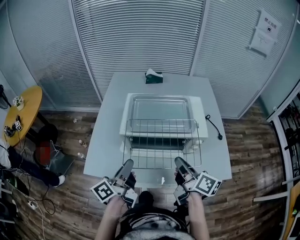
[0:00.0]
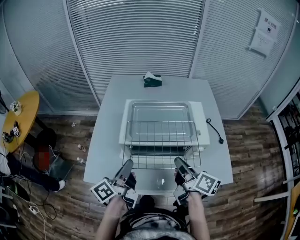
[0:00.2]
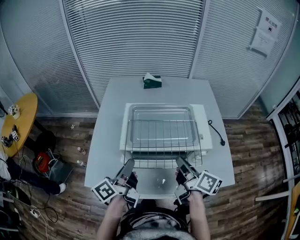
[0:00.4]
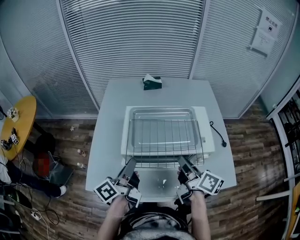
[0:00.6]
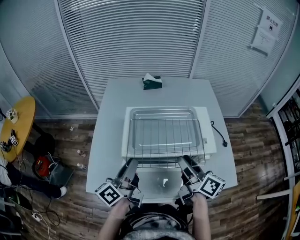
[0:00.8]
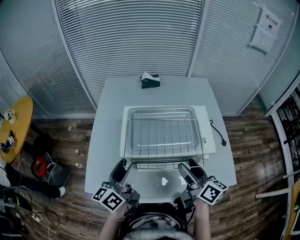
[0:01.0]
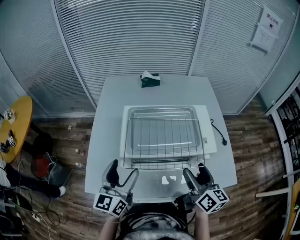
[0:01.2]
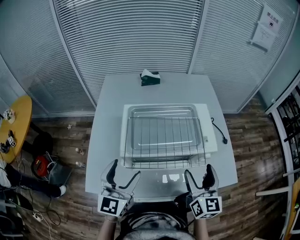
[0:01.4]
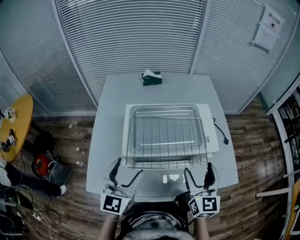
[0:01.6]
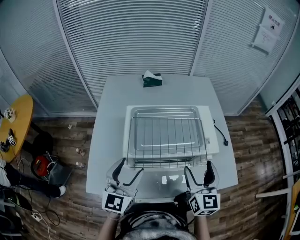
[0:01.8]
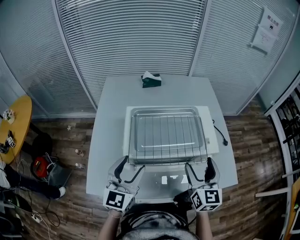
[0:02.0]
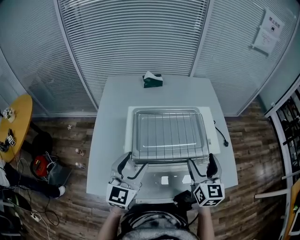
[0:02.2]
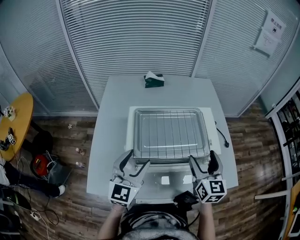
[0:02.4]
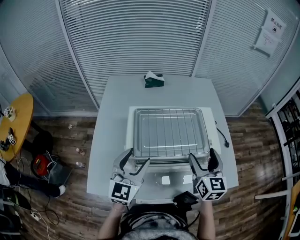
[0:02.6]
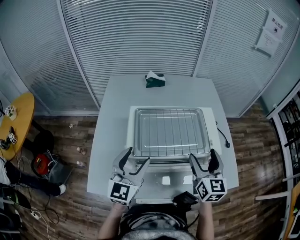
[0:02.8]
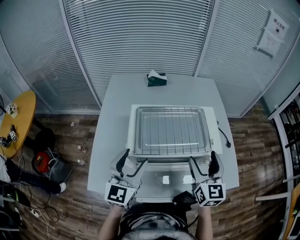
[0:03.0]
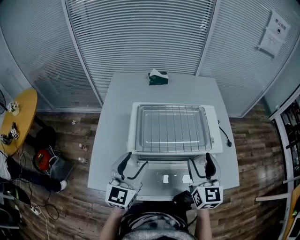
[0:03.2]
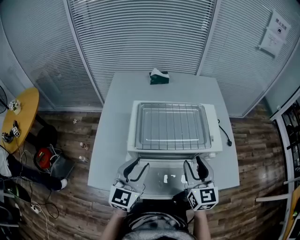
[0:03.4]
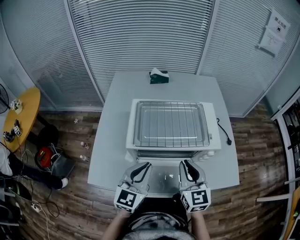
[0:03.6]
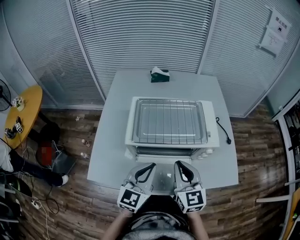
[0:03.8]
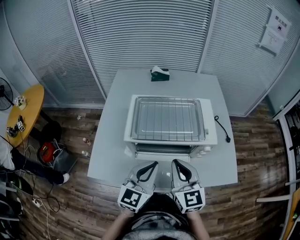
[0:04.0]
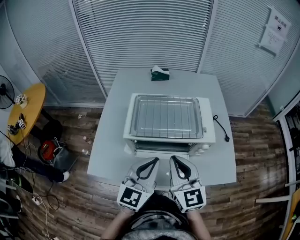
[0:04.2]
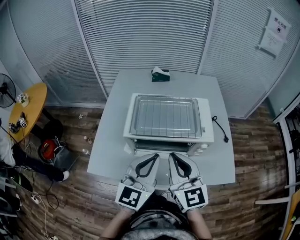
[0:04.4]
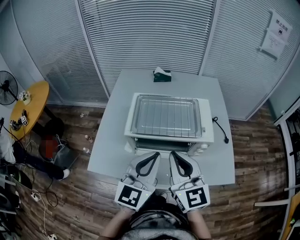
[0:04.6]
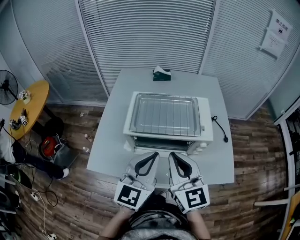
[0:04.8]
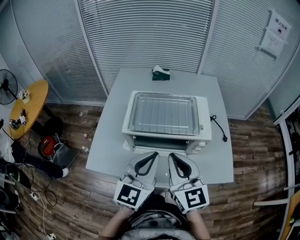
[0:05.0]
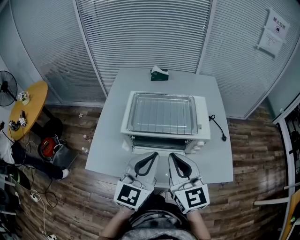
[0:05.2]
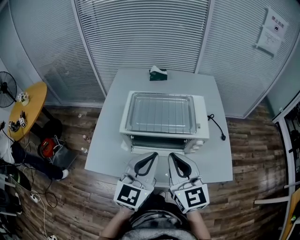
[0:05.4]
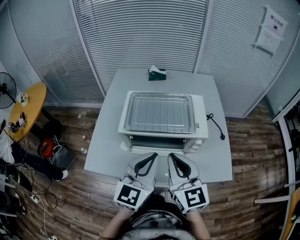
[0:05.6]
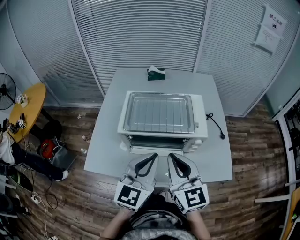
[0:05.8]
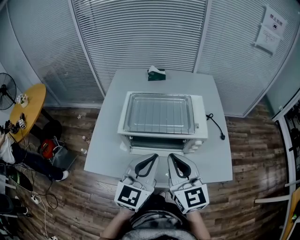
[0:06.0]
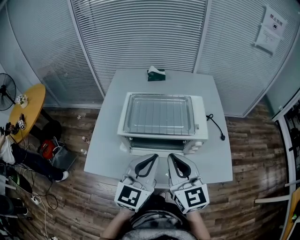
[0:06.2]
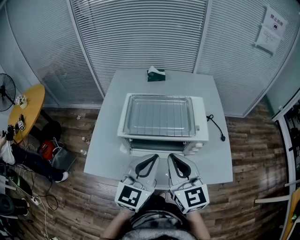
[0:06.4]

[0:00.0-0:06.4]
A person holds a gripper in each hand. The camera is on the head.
0:00.0 to 0:01.6: The left gripper goes some 10 cm forward, rolls clockwise, seen from behind, by roughly 70 degrees, and opens; the right gripper ends up roughly 5 cm from where it was, rotates around the line of its fingers by some 50 degrees, counterclockwise from behind, and opens its fingers.
0:03.2 to 0:04.8: The left gripper heads to the right, upward and backward, covering roughly 15 cm, and closes up, while the right gripper is displaced backward, upward and to the left by some 15 cm, swivels some 20 degrees, and closes.
0:04.8 to 0:06.4: There are only small adjustments of the grippers.

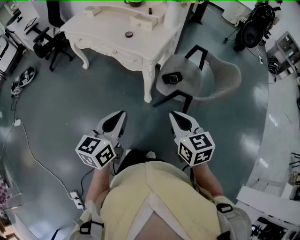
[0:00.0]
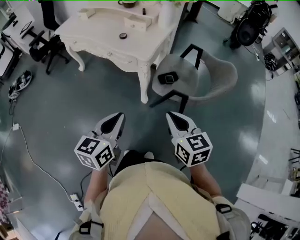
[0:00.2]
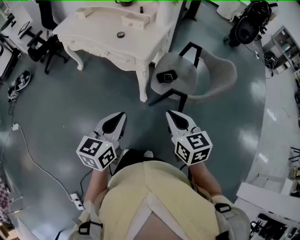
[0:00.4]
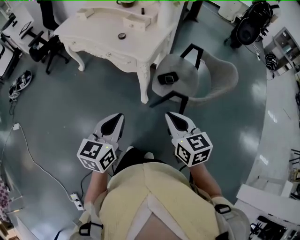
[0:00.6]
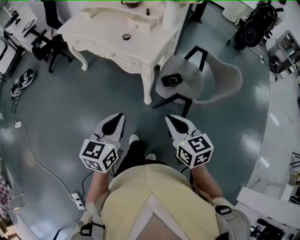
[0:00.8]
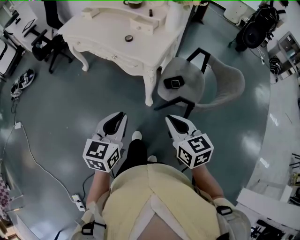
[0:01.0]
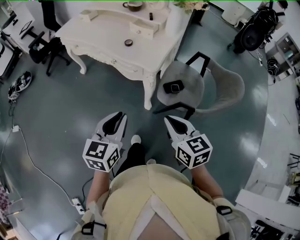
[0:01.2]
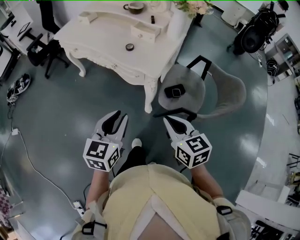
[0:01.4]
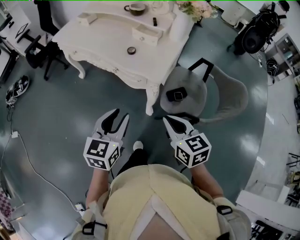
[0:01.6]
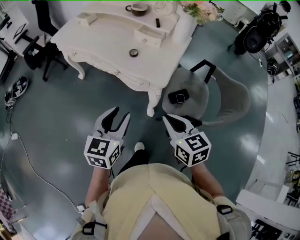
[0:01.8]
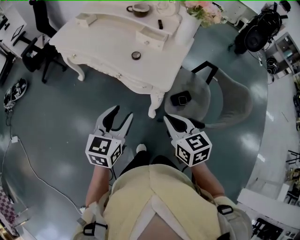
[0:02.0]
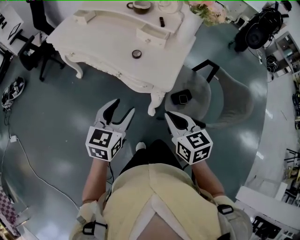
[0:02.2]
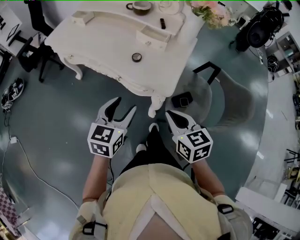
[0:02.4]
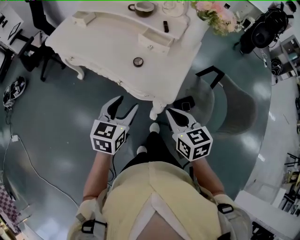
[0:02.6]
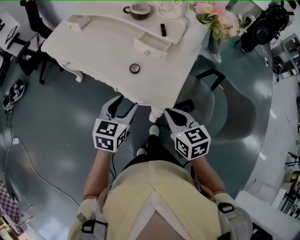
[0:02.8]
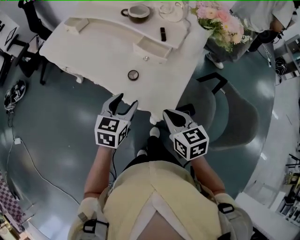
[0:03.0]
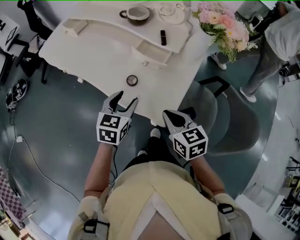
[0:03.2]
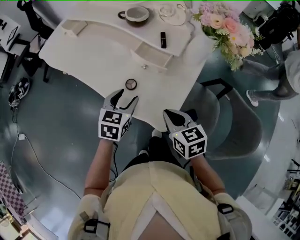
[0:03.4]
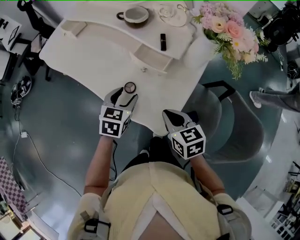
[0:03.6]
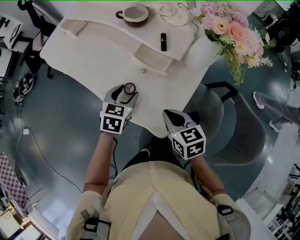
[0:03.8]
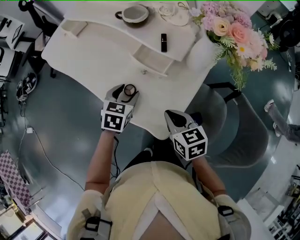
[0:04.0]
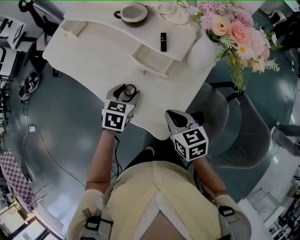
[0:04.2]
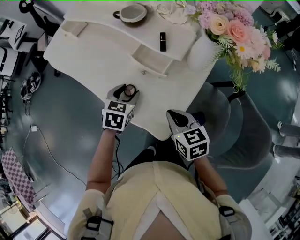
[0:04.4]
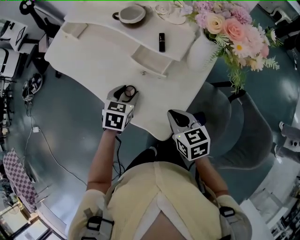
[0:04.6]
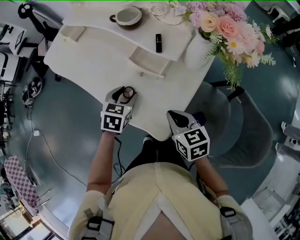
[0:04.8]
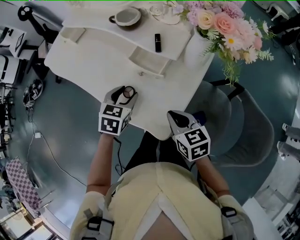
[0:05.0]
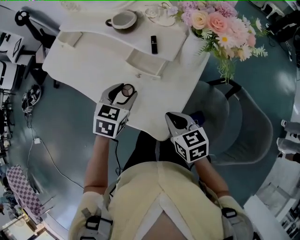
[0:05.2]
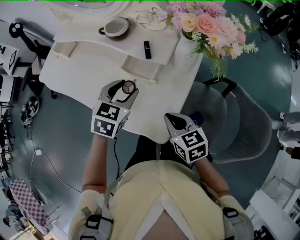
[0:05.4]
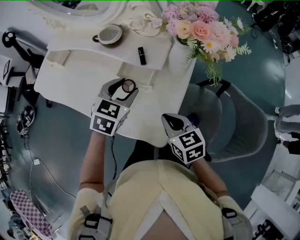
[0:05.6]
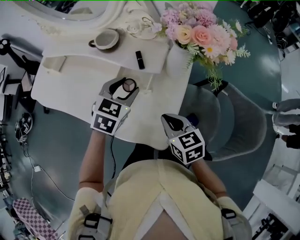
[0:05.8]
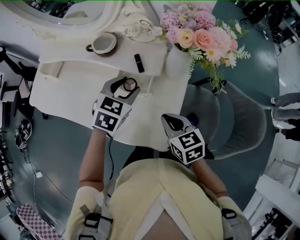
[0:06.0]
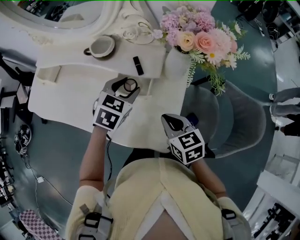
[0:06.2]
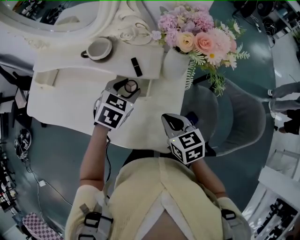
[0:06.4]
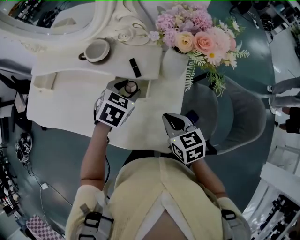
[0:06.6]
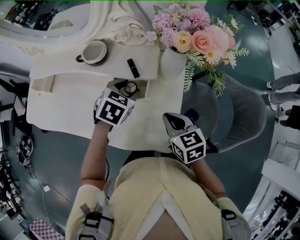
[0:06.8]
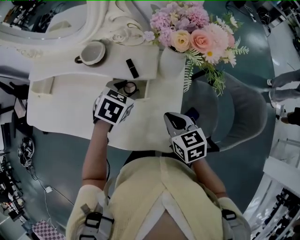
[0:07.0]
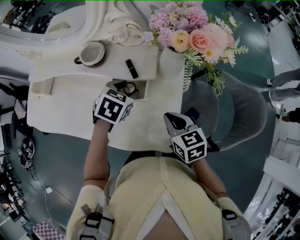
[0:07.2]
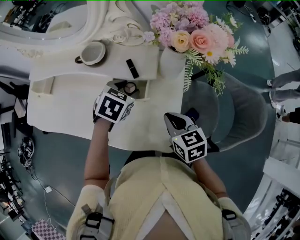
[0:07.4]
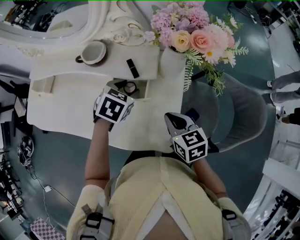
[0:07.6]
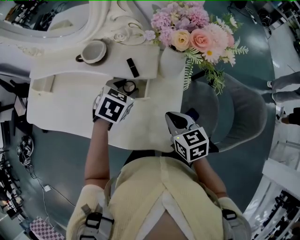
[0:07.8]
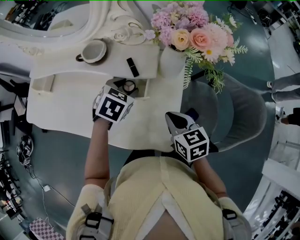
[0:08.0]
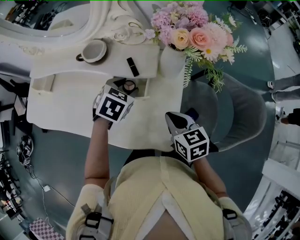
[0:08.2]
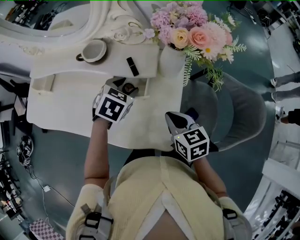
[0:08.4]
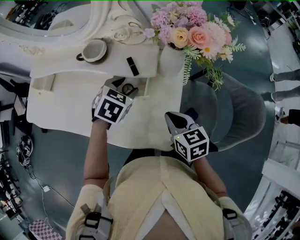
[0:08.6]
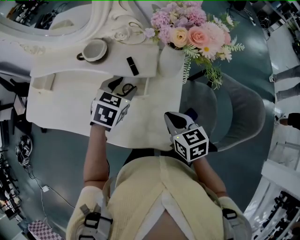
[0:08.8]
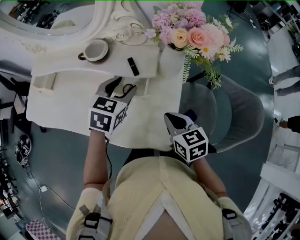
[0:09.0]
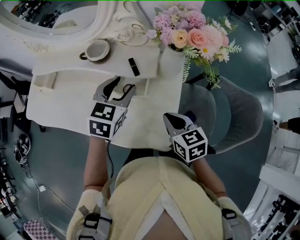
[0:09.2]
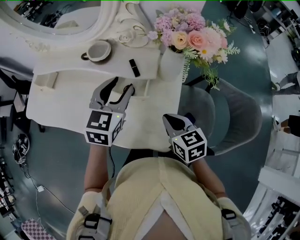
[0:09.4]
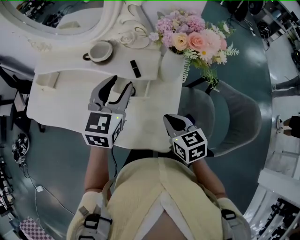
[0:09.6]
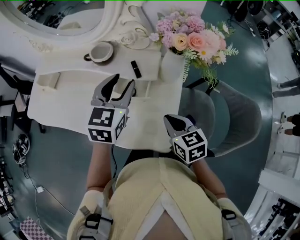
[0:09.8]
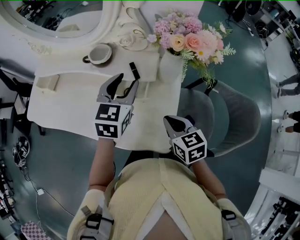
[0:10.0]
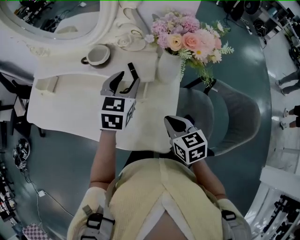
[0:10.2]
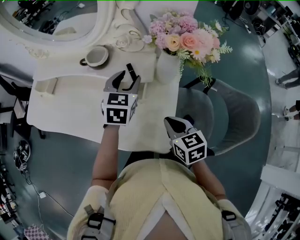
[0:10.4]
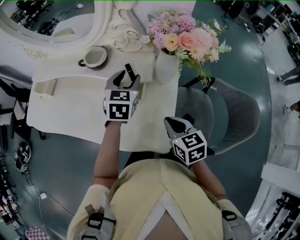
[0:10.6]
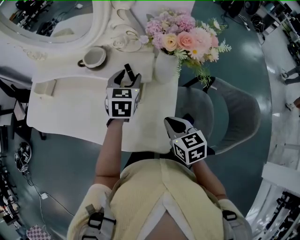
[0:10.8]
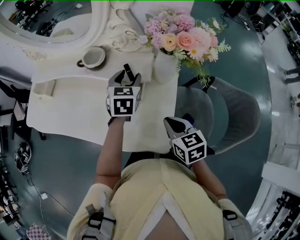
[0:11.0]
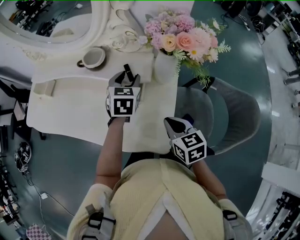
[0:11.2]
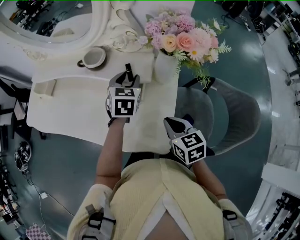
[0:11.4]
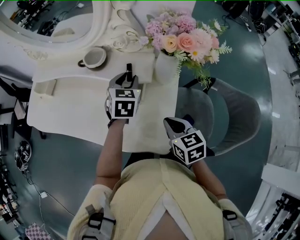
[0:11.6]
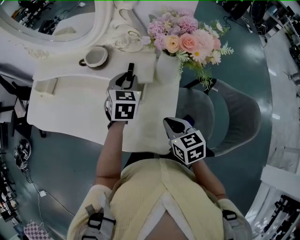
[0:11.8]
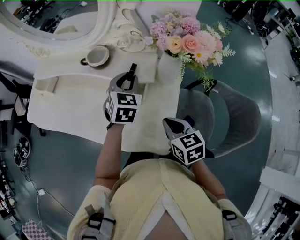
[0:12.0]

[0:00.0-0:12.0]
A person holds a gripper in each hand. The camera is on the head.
0:00.0 to 0:01.6: The left gripper goes some 15 cm forward, and opens up; the right gripper moves forward and to the left, about 15 cm.
0:01.6 to 0:03.0: The grippers both shift forward by some 25 cm. The left gripper opens up.
0:03.0 to 0:04.4: The right gripper goes about 10 cm forward, downward and to the right. Meanwhile the left gripper travels forward and downward by roughly 15 cm, and rotates approximately 20 degrees.
0:04.4 to 0:06.0: The left gripper is displaced upward, to the right and forward by about 15 cm, and rotates some 30 degrees.
0:06.0 to 0:07.6: The left gripper shifts by roughly 5 cm.
0:07.6 to 0:09.0: The left gripper is displaced upward by about 5 cm.
0:09.0 to 0:10.4: The left gripper reaches some 10 cm upward, then returns.
0:10.4 to 0:12.0: The left gripper closes its fingers.

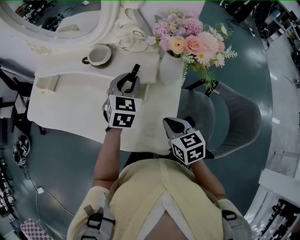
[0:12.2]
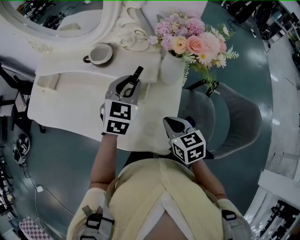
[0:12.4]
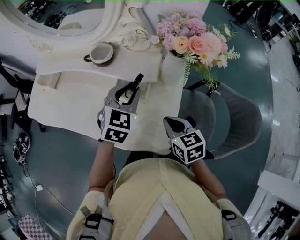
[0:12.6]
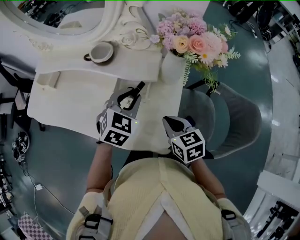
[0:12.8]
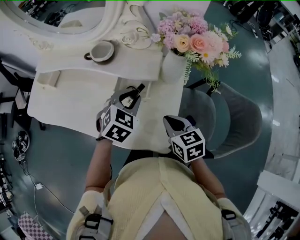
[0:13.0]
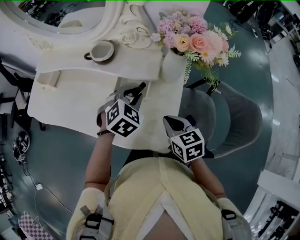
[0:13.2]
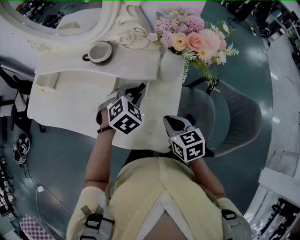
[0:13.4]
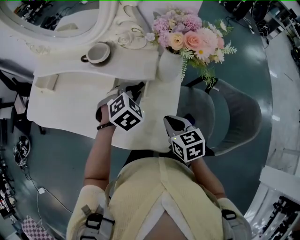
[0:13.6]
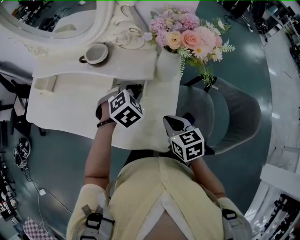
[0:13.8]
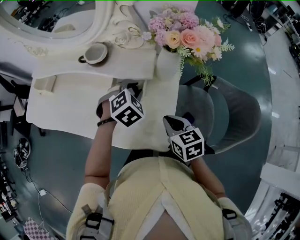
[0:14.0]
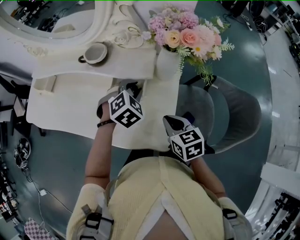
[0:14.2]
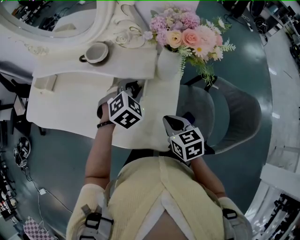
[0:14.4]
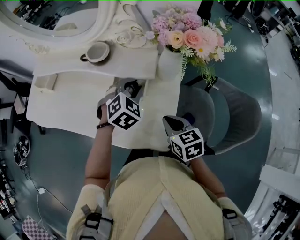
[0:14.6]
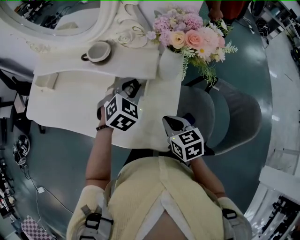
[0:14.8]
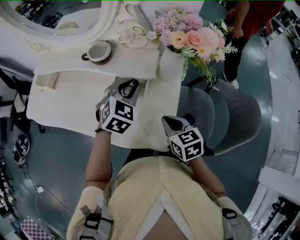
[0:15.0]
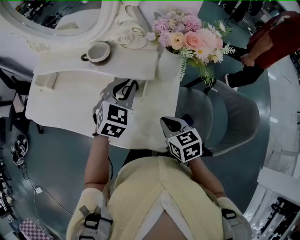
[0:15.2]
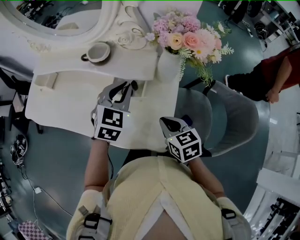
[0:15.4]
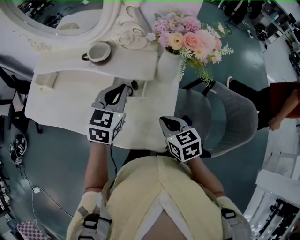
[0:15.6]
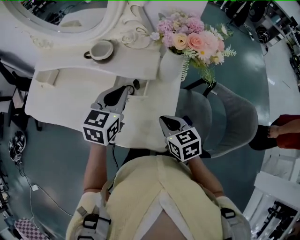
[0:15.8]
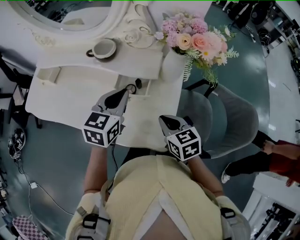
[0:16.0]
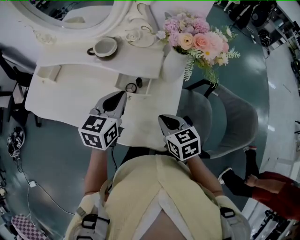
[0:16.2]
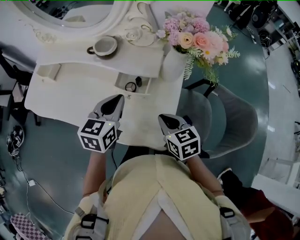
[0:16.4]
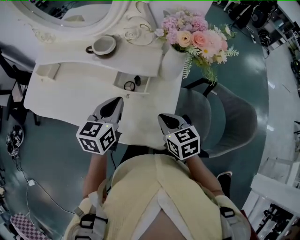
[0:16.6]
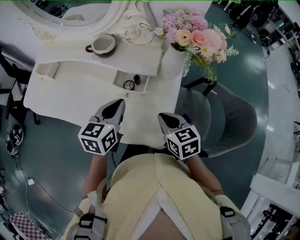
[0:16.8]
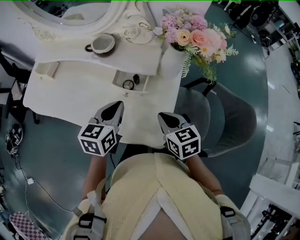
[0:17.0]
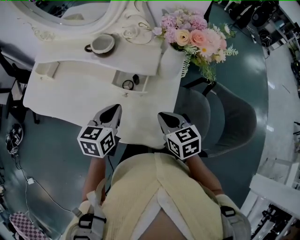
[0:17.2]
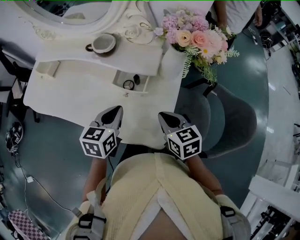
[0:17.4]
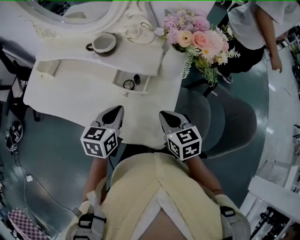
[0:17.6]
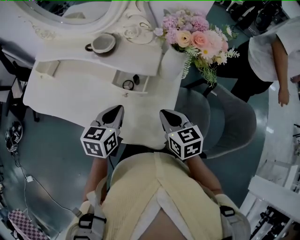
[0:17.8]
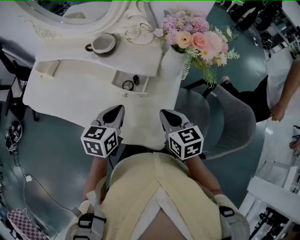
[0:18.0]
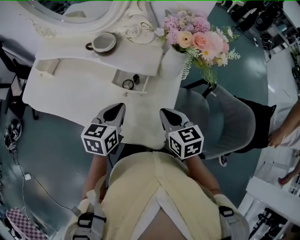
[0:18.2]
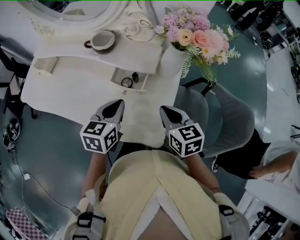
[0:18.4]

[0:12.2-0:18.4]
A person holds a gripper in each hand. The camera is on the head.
0:12.2 to 0:13.8: The left gripper shifts approximately 10 cm downward and backward, and changes its angle by some 40 degrees.
0:13.8 to 0:15.4: The left gripper shifts some 10 cm upward, and changes its angle by roughly 30 degrees.
0:15.4 to 0:16.8: The left gripper shifts about 5 cm backward, and changes its angle by some 30 degrees.
0:16.8 to 0:18.4: The grippers make only small movements.
